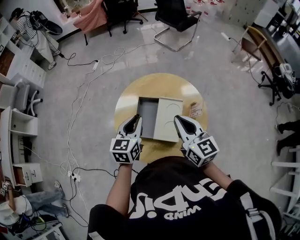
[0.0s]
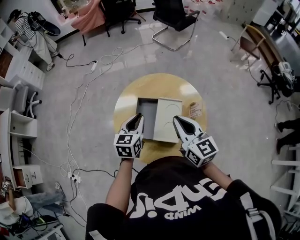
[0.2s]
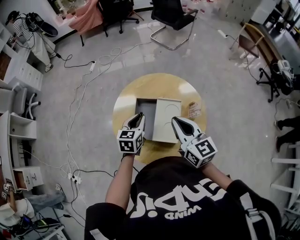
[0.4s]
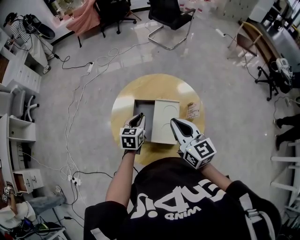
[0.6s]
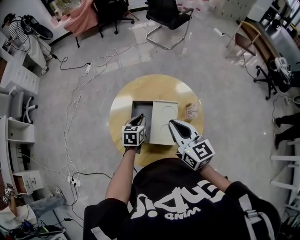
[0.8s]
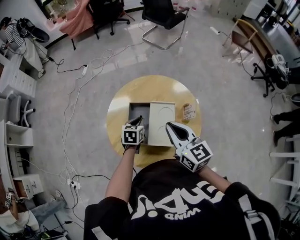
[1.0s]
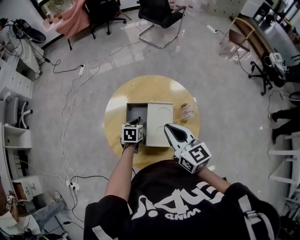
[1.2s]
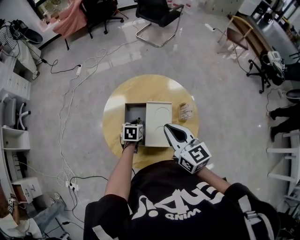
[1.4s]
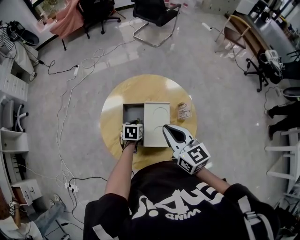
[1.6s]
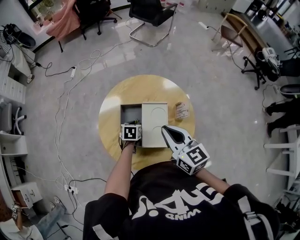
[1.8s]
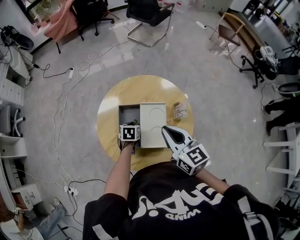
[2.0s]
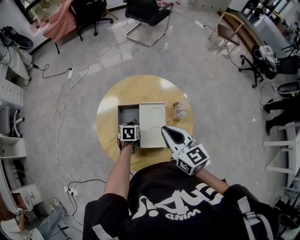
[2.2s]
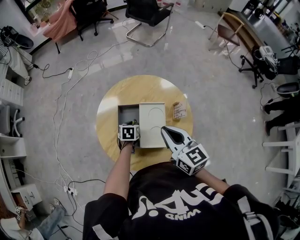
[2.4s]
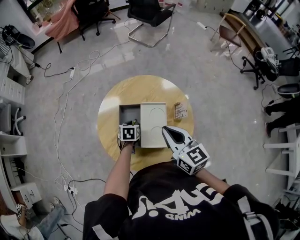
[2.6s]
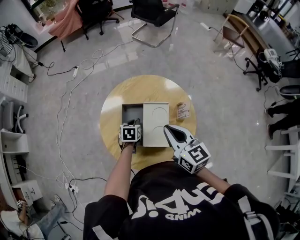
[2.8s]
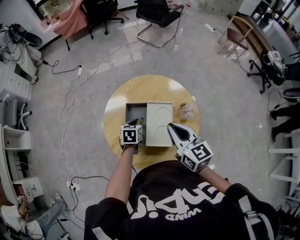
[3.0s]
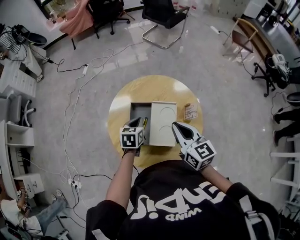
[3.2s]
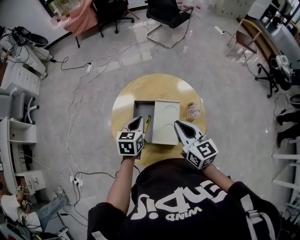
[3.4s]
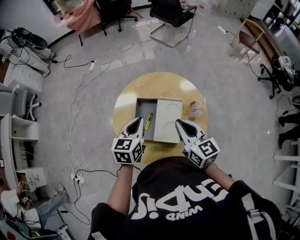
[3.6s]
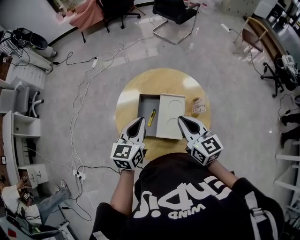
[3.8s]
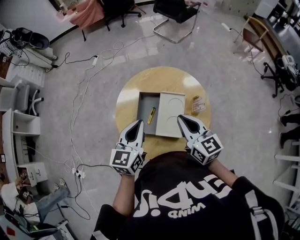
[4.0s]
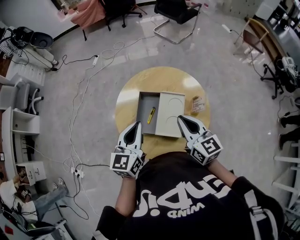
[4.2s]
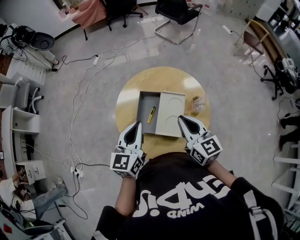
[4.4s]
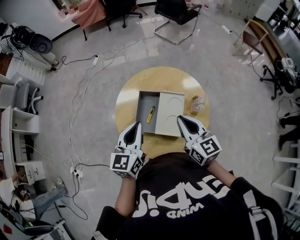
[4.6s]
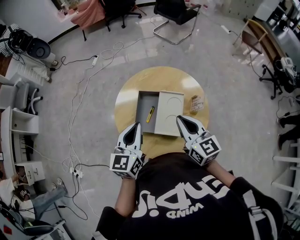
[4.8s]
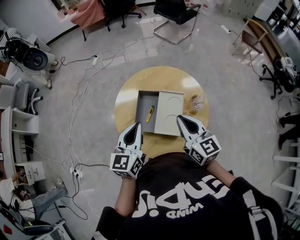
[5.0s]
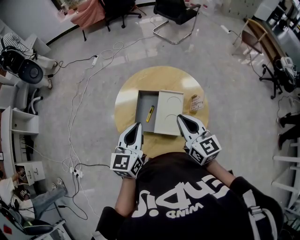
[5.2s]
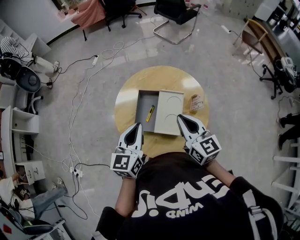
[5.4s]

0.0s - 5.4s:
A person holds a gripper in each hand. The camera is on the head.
0.0s - 1.4s: The left gripper moves downward, roughly 20 cm, and points its fingers roughly 30 degrees further downward.
1.4s - 2.8s: The grippers stay close to where they were, moving slightly.
2.8s - 4.0s: The left gripper travels upward by roughly 25 cm, and tilts its fingers some 40 degrees upward.
4.0s - 5.4s: The grippers make only small movements.

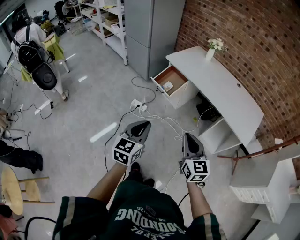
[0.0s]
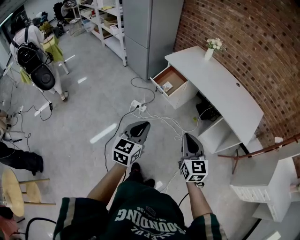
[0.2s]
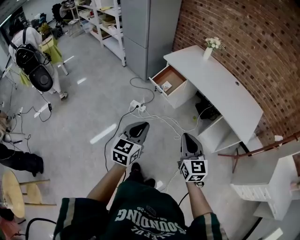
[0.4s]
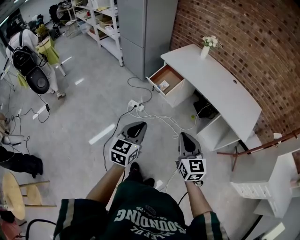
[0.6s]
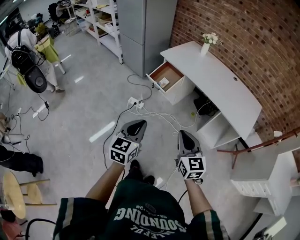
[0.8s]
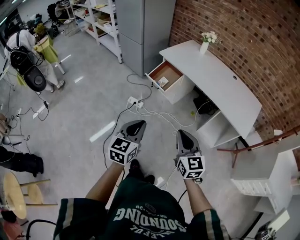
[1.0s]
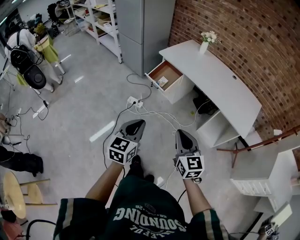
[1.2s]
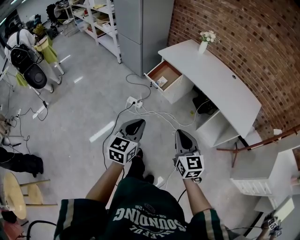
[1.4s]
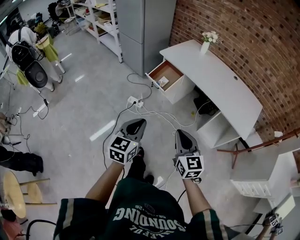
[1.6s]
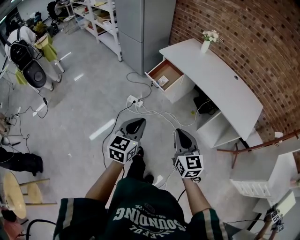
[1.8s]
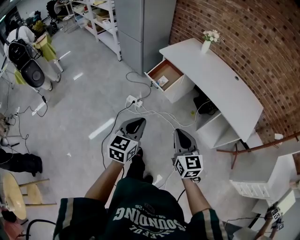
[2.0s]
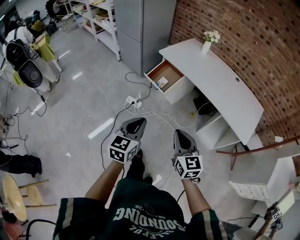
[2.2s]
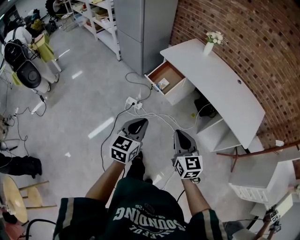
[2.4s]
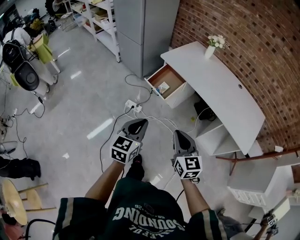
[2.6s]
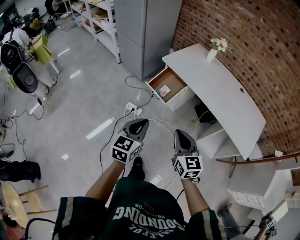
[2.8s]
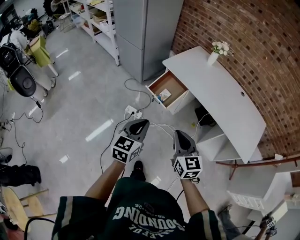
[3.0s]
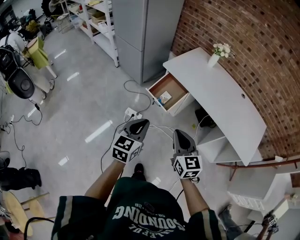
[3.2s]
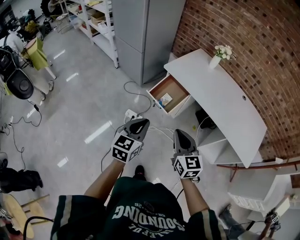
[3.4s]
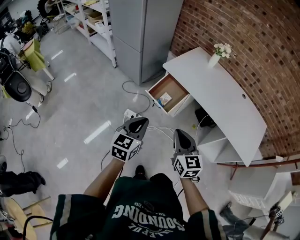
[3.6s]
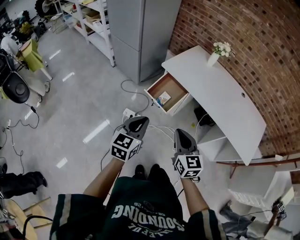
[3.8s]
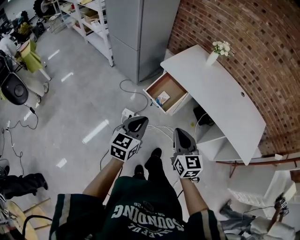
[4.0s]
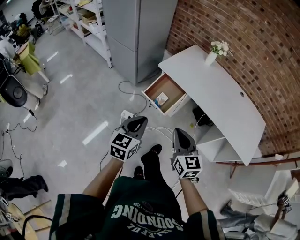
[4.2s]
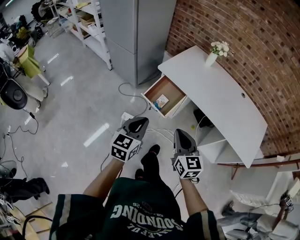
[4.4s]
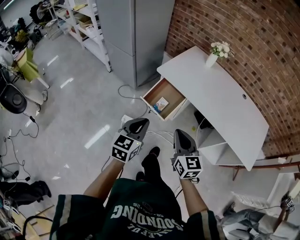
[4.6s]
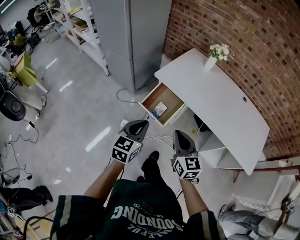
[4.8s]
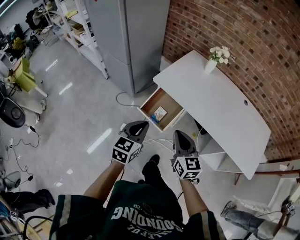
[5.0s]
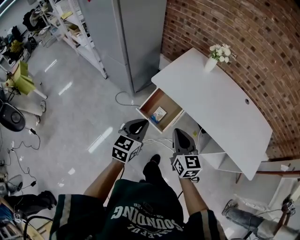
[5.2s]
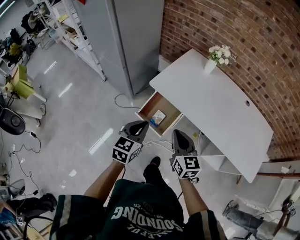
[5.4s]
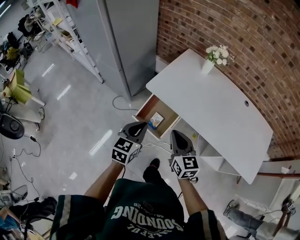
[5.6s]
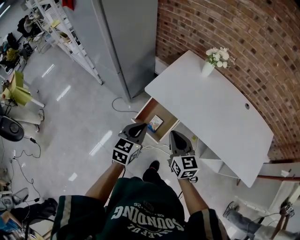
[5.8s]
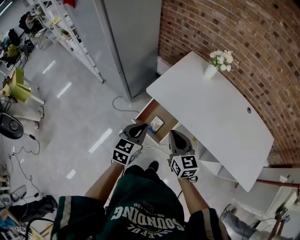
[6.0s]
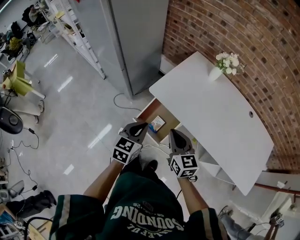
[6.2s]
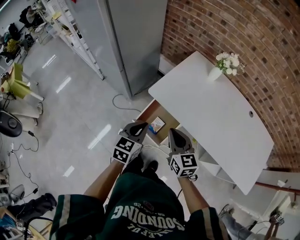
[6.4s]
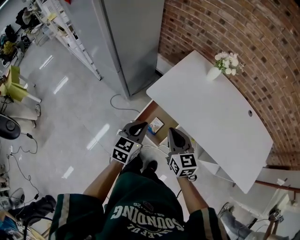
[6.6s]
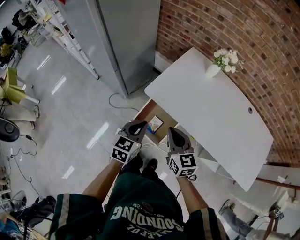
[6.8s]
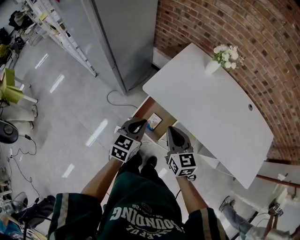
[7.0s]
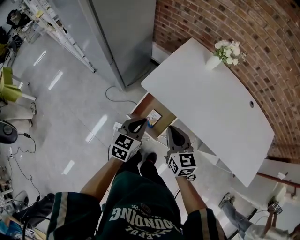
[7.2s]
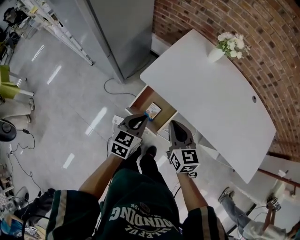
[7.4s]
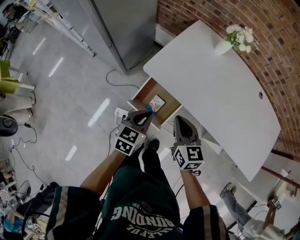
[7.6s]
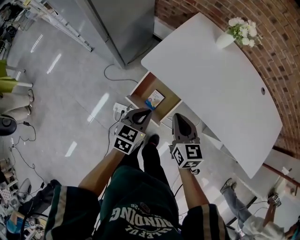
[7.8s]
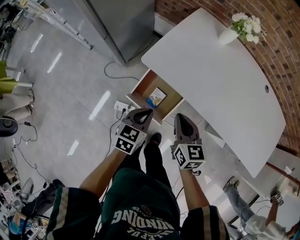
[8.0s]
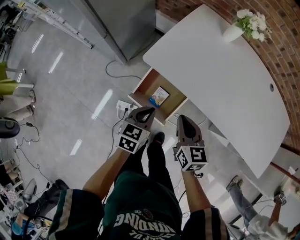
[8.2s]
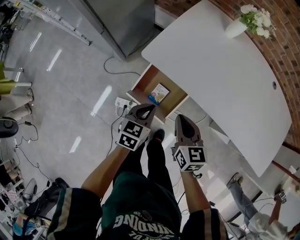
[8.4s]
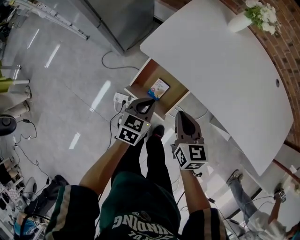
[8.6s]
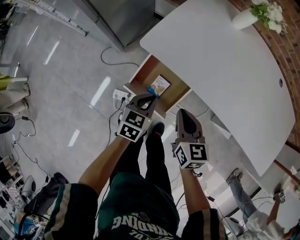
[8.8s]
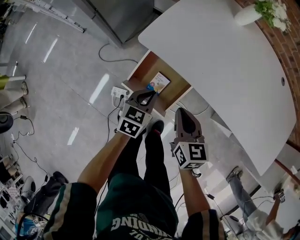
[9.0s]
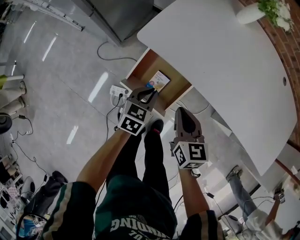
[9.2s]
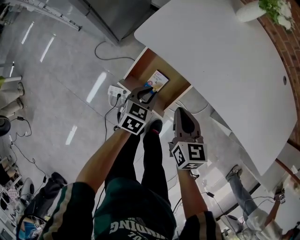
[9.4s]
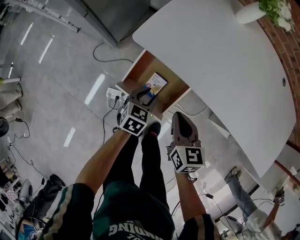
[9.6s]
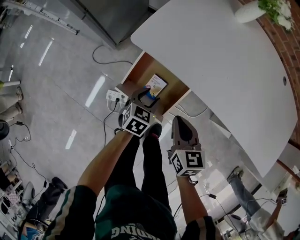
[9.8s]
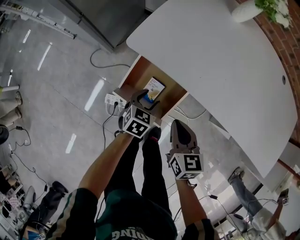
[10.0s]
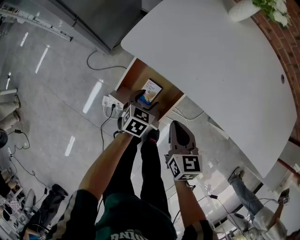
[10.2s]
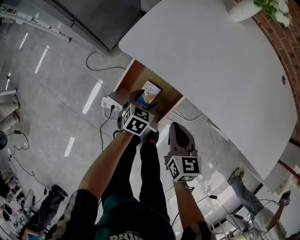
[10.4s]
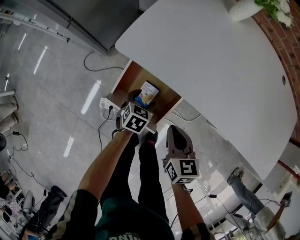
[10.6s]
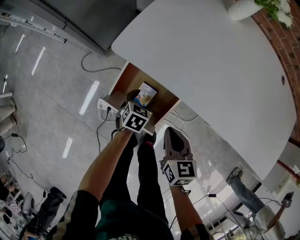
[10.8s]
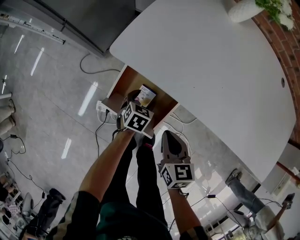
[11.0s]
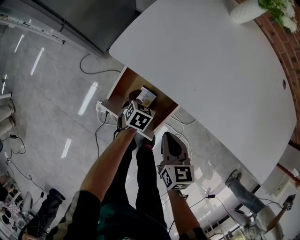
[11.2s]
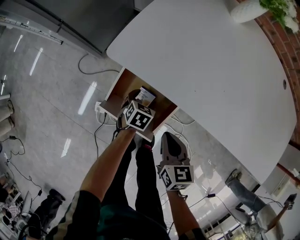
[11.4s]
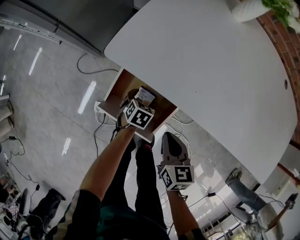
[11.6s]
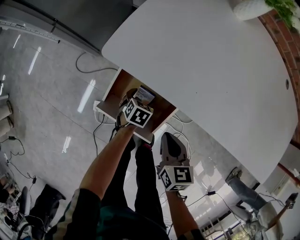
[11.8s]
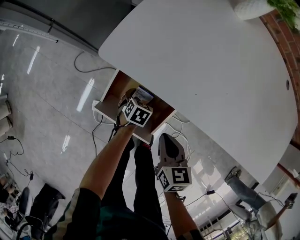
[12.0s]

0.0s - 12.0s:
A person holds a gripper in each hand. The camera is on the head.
0.0s - 1.6s: The grippers move only a little.
1.6s - 3.0s: The two grippers go about 20 cm forward.
3.0s - 4.4s: Both grippers travel together forward, some 10 cm.
4.4s - 6.0s: The grippers both shift forward by about 25 cm.
6.0s - 7.6s: The left gripper travels downward by roughly 10 cm, while the right gripper is displaced downward and forward by some 10 cm.
7.6s - 9.0s: Both grippers travel together downward, roughly 15 cm.
9.0s - 10.4s: The left gripper is displaced downward by roughly 15 cm, and opens up; the right gripper travels downward by about 5 cm.
10.4s - 12.0s: The right gripper travels downward by approximately 5 cm. The left gripper goes some 10 cm downward.

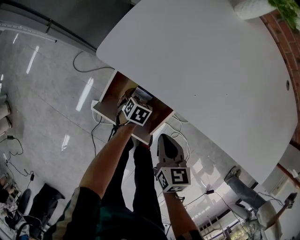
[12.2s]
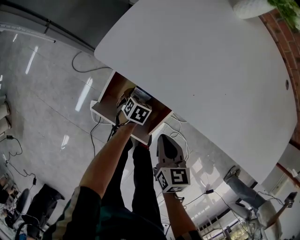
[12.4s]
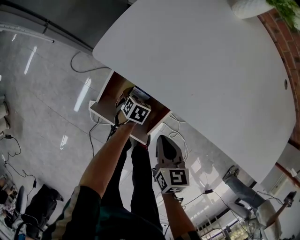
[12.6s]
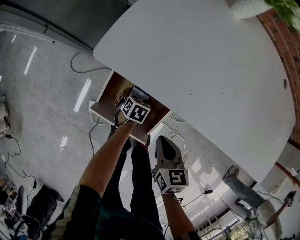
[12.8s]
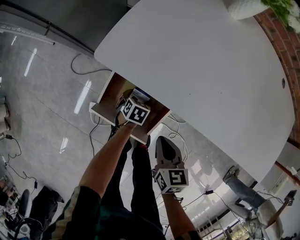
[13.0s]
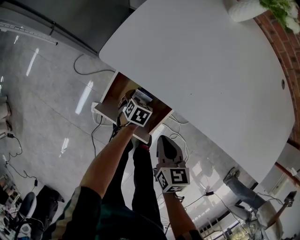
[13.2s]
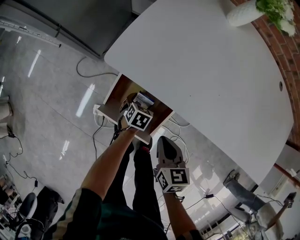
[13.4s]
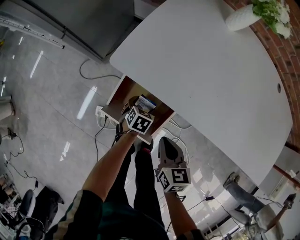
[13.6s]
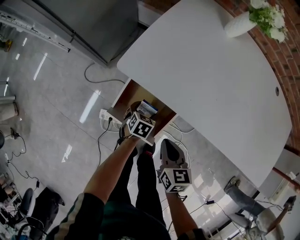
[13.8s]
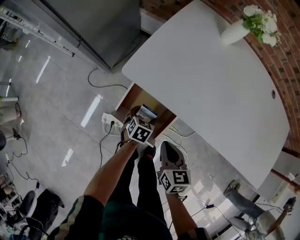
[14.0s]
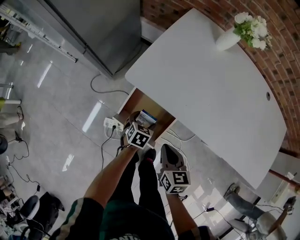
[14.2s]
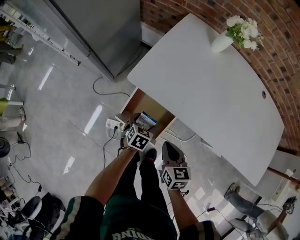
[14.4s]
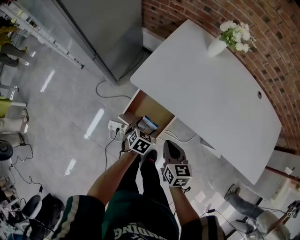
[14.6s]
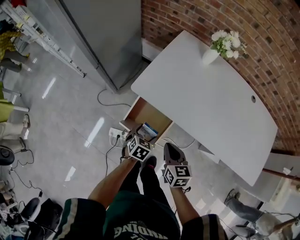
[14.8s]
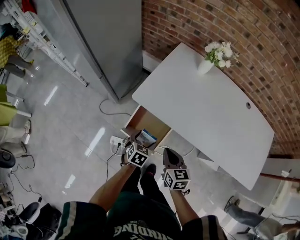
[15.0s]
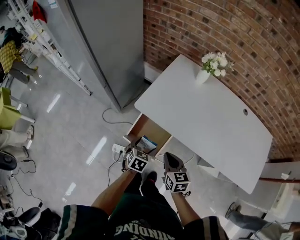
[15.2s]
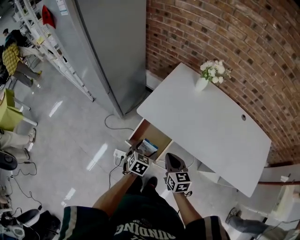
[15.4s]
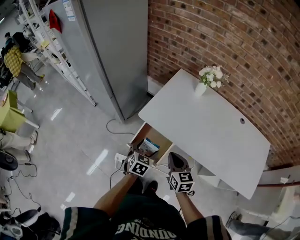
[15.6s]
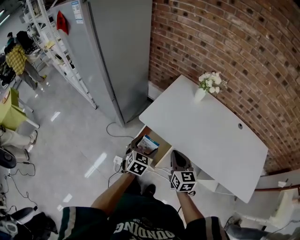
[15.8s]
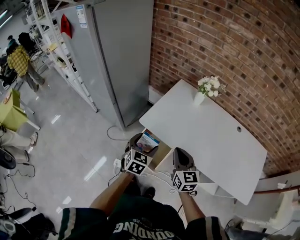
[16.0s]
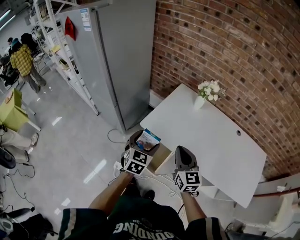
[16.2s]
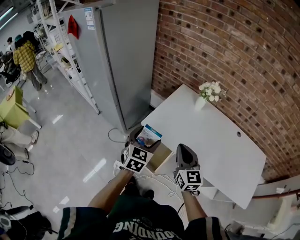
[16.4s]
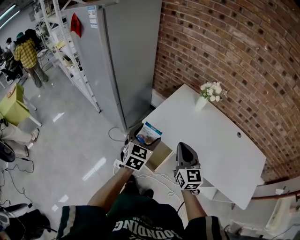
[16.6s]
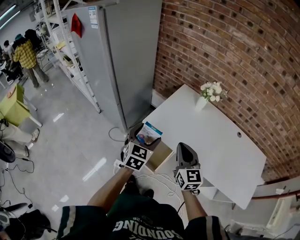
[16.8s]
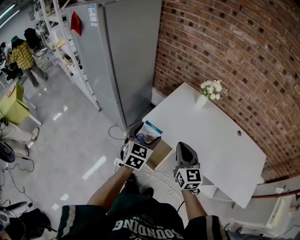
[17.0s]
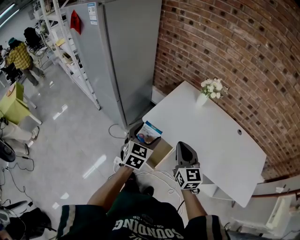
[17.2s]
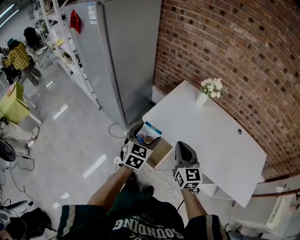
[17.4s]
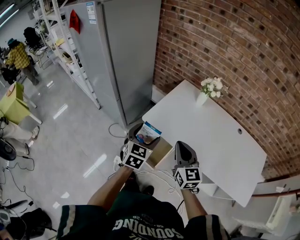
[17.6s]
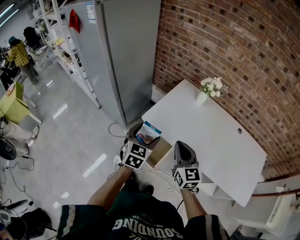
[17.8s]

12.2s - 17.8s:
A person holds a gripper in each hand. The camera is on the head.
12.2s - 13.6s: The left gripper moves upward, roughly 5 cm.
13.6s - 15.0s: The left gripper moves upward, some 25 cm. Meanwhile the right gripper moves upward, about 15 cm.
15.0s - 16.4s: The grippers both shift upward by approximately 25 cm. The left gripper turns by roughly 30 degrees; the right gripper rotates some 30 degrees.
16.4s - 17.8s: The grippers make only small movements.

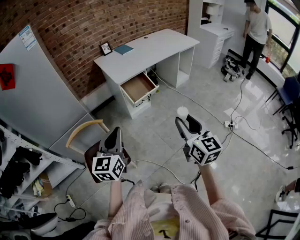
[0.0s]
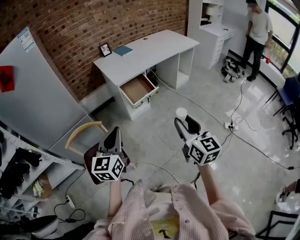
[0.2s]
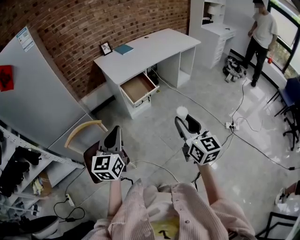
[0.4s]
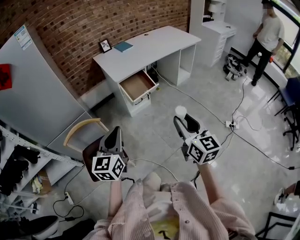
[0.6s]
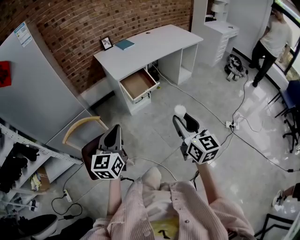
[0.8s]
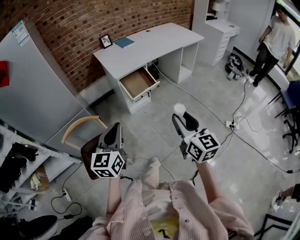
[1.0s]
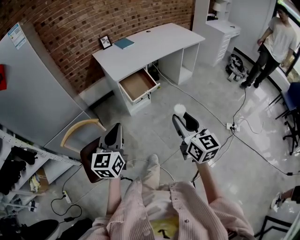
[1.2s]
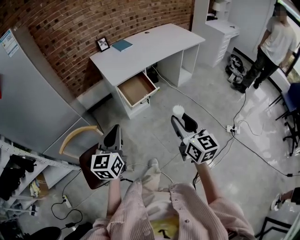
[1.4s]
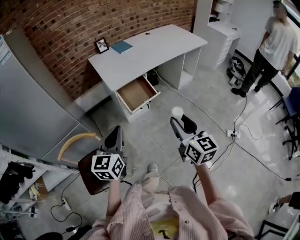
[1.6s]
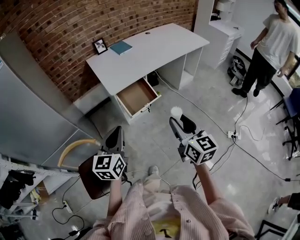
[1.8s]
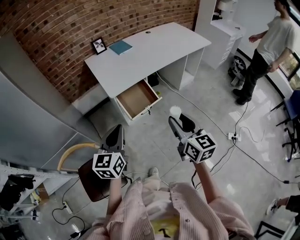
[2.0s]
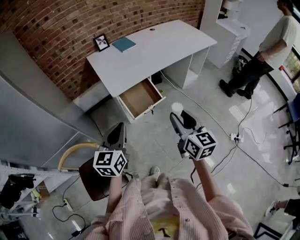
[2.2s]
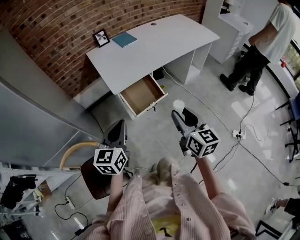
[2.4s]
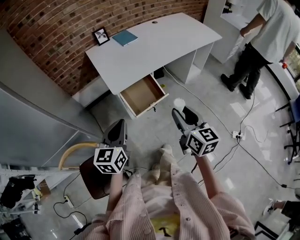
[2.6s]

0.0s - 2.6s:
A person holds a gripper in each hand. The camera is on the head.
0.0s - 1.2s: Both grippers travel together forward, approximately 5 cm.
1.2s - 2.6s: The two grippers go some 30 cm forward.
